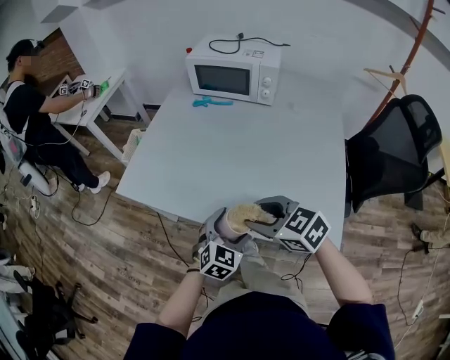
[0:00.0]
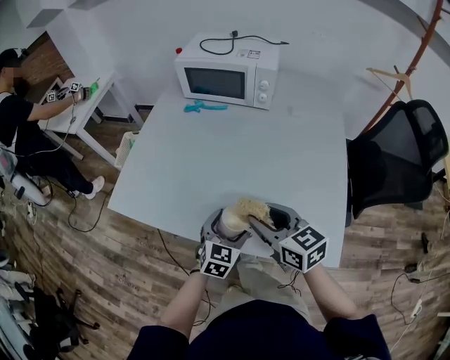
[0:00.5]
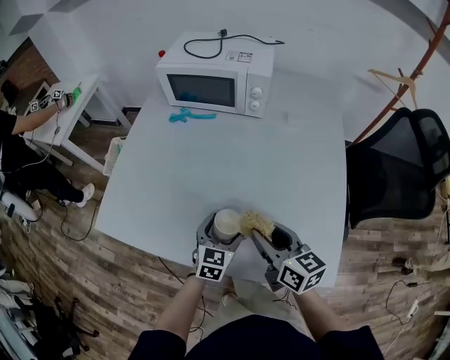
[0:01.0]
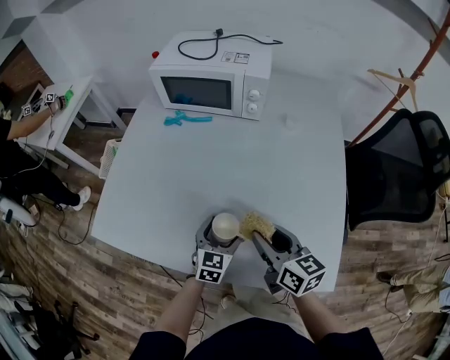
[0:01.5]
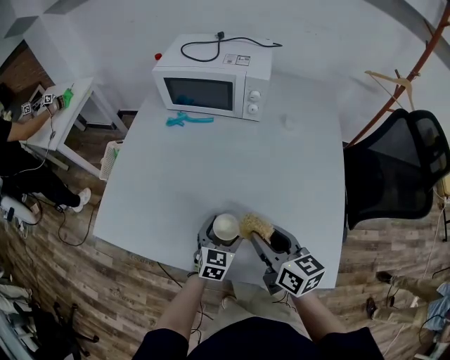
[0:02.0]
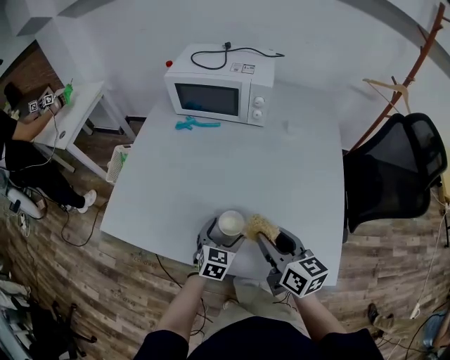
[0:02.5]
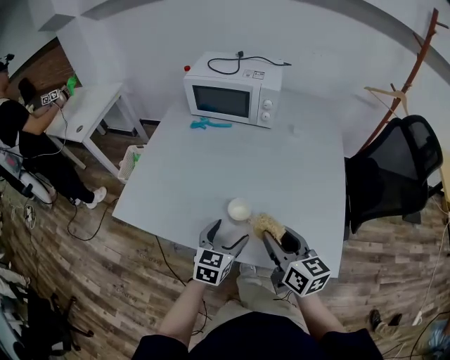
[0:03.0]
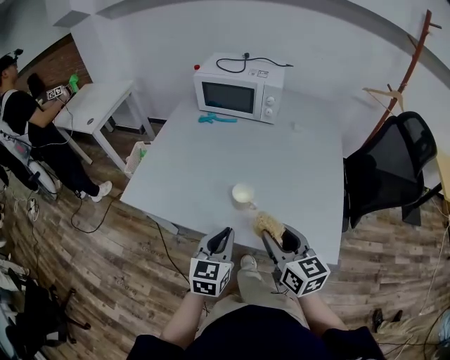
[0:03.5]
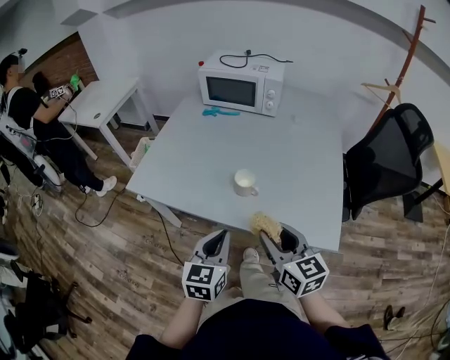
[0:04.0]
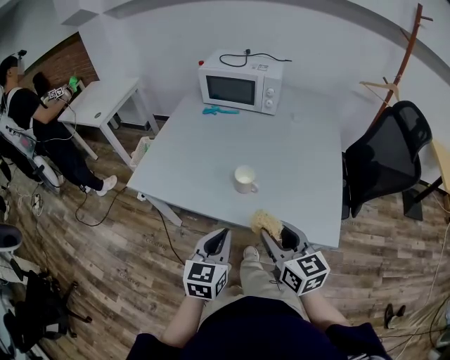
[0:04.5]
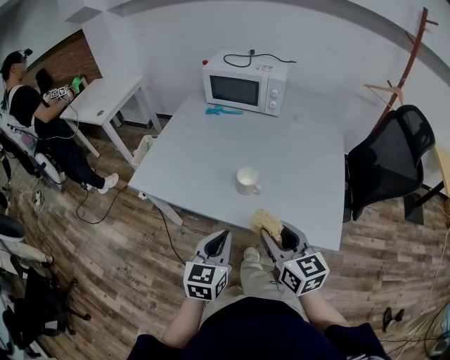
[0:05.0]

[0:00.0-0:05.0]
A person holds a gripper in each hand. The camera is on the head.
0:00.0 to 0:02.5: The left gripper moves forward and downward, roughly 15 cm. The right gripper is displaced forward and to the right by some 15 cm, and swivels about 50 degrees.
0:02.5 to 0:05.0: The right gripper moves backward, some 20 cm. Meanwhile the left gripper is displaced backward and upward by roughly 30 cm, turns by some 20 degrees, and closes.

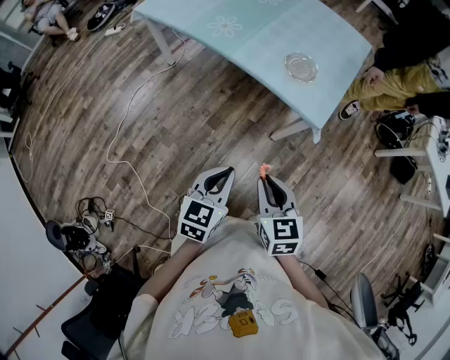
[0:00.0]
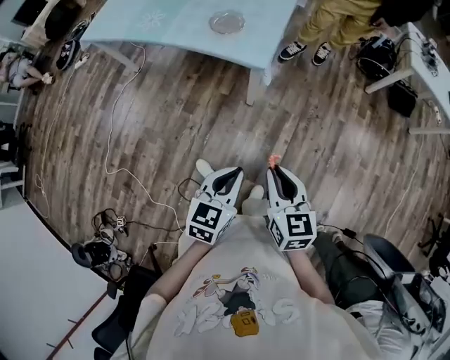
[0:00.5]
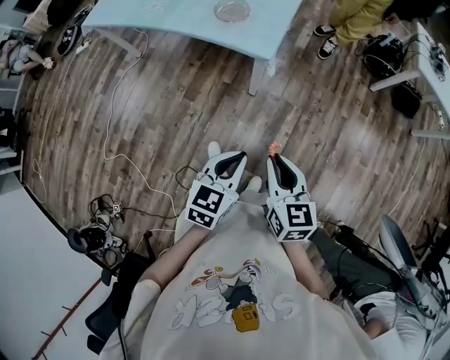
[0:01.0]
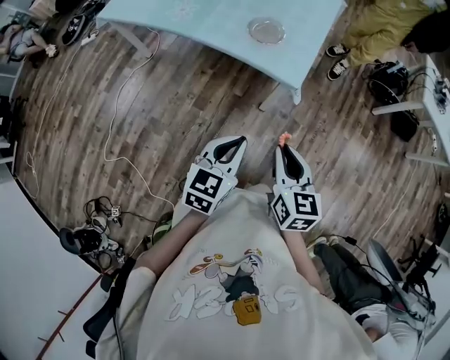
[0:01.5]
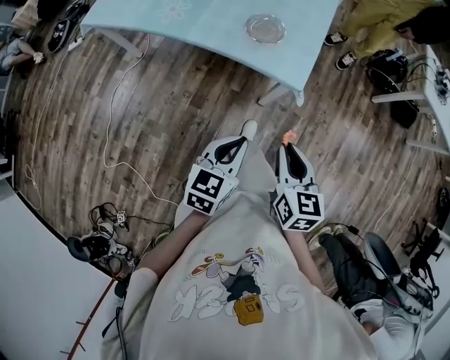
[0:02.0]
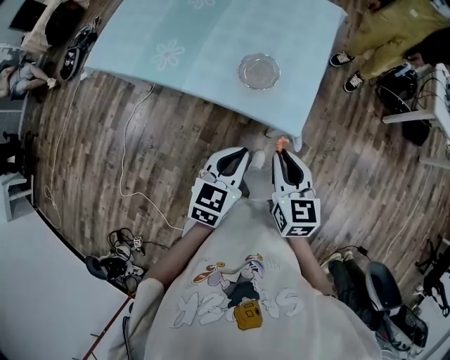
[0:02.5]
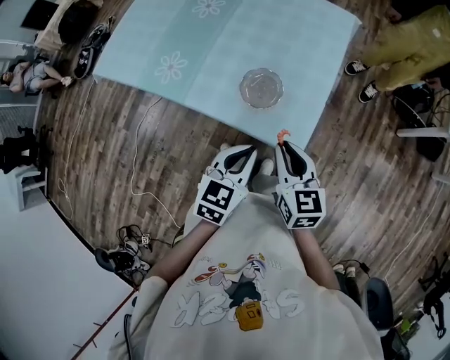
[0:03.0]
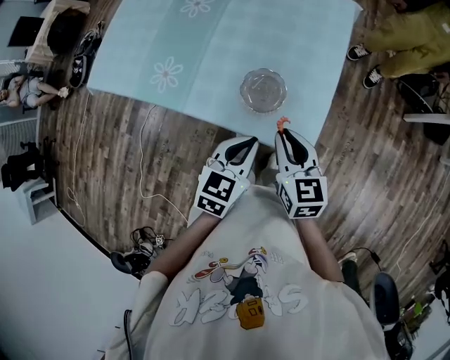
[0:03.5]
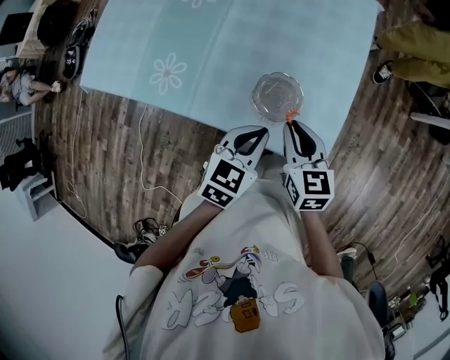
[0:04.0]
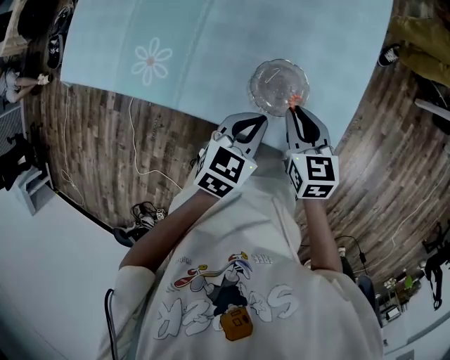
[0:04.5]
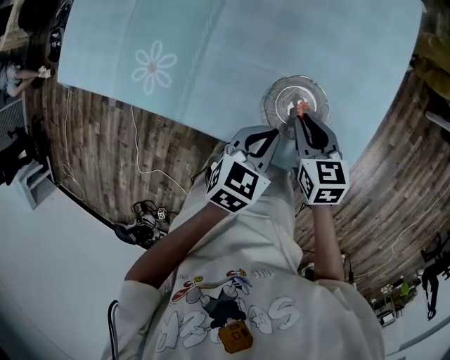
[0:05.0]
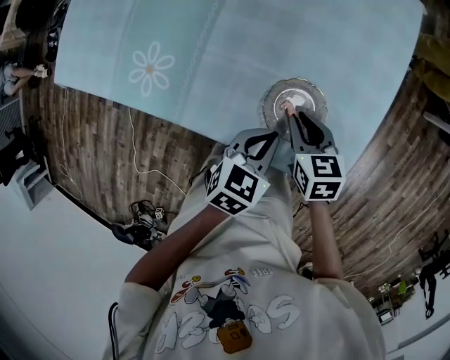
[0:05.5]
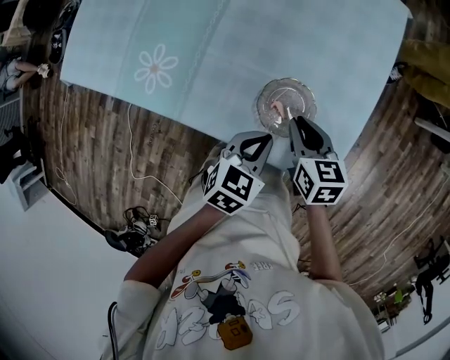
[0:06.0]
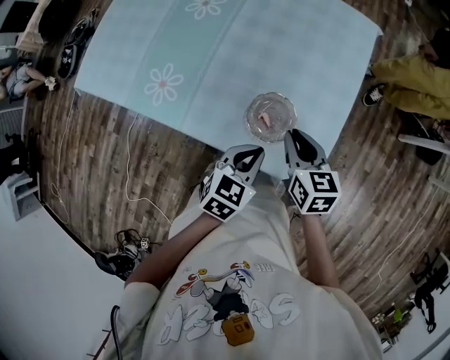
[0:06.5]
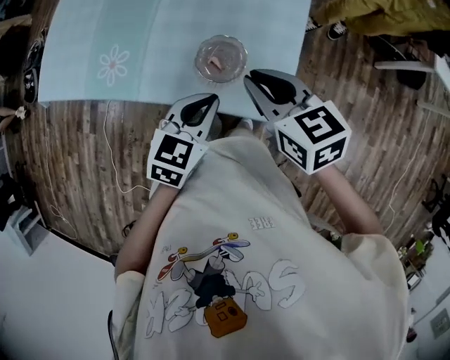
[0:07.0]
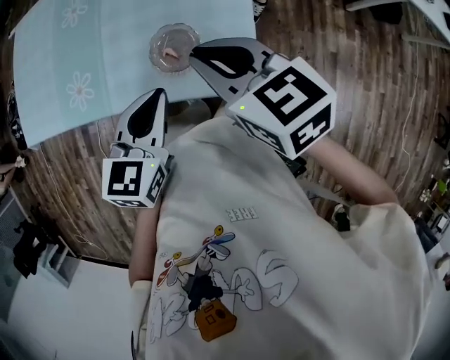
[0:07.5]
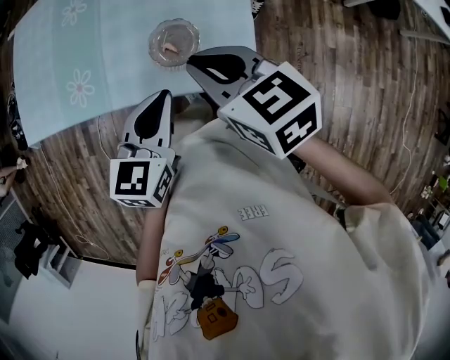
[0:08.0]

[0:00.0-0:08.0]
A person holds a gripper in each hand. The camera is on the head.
0:00.0 to 0:02.0: Both grippers travel together to the right and forward, about 15 cm. The right gripper rotates some 20 degrees.
0:02.0 to 0:04.0: The grippers both shift forward by some 40 cm.
0:04.0 to 0:06.0: The grippers both shift downward by roughly 10 cm.
0:06.0 to 0:08.0: Both grippers travel together upward and backward, roughly 20 cm.

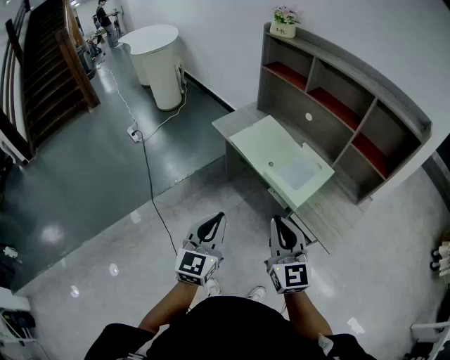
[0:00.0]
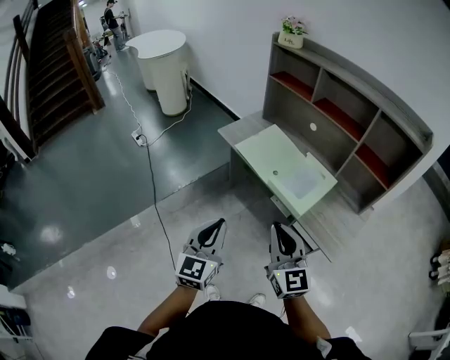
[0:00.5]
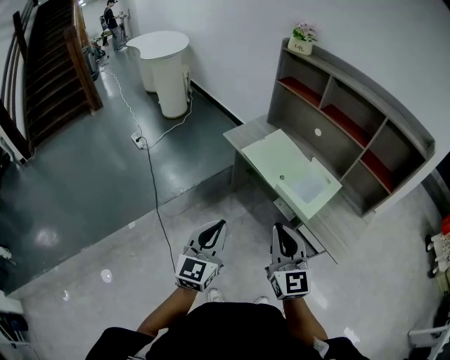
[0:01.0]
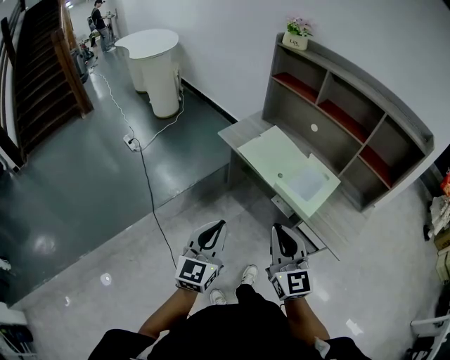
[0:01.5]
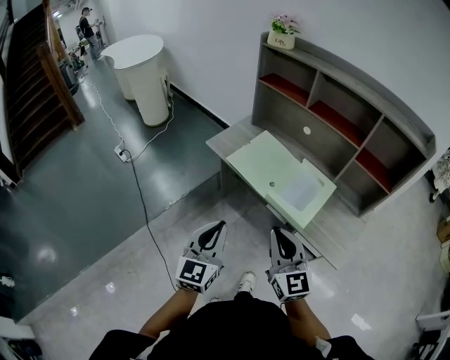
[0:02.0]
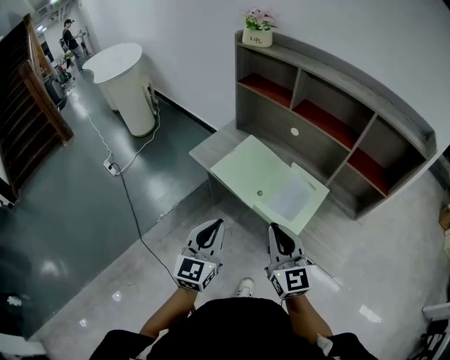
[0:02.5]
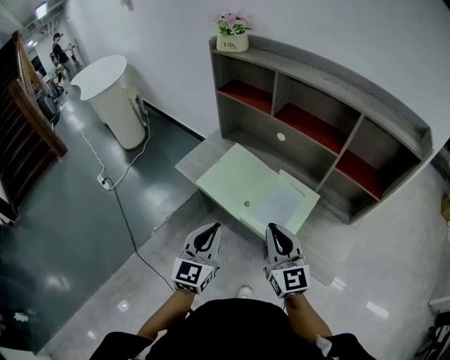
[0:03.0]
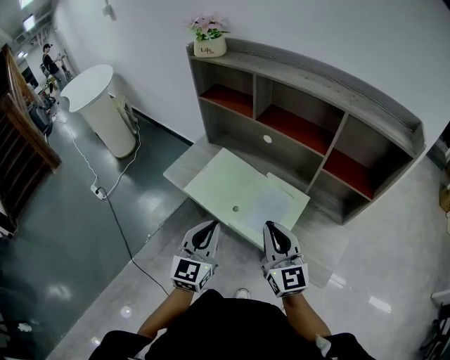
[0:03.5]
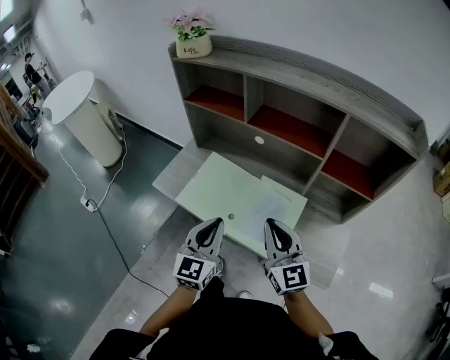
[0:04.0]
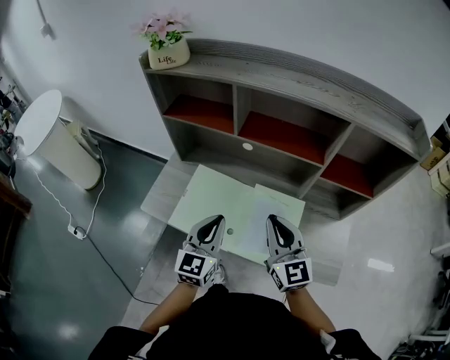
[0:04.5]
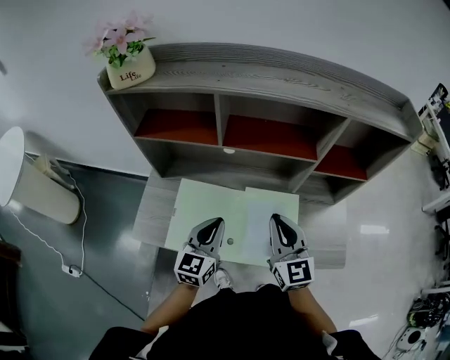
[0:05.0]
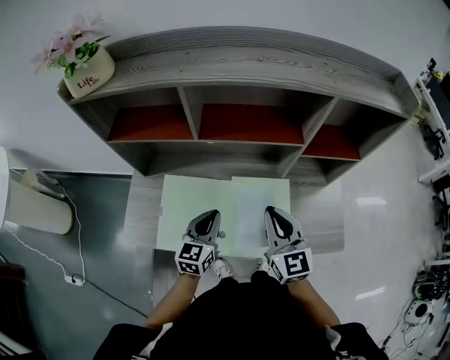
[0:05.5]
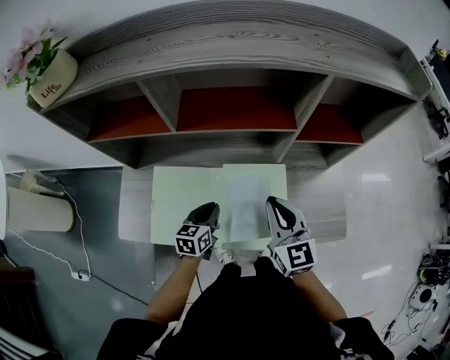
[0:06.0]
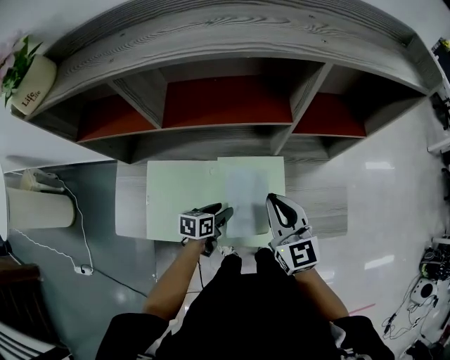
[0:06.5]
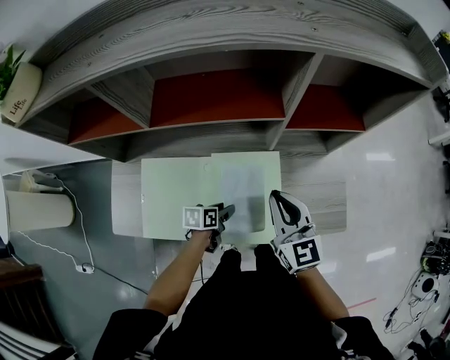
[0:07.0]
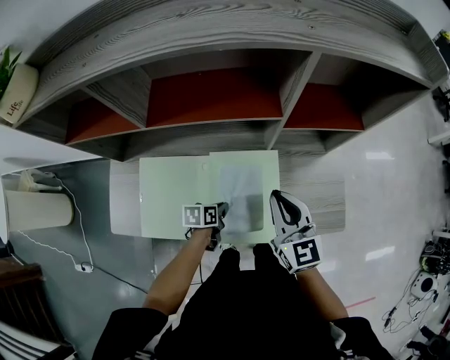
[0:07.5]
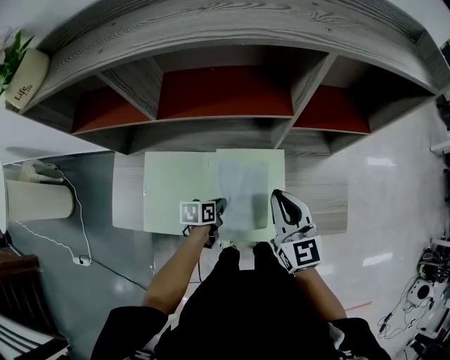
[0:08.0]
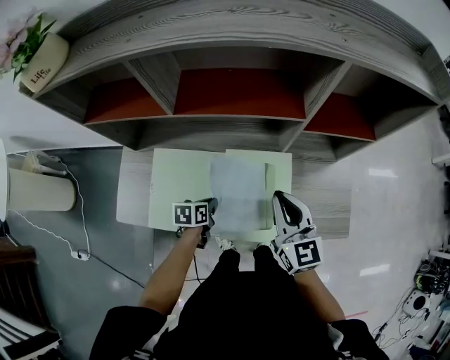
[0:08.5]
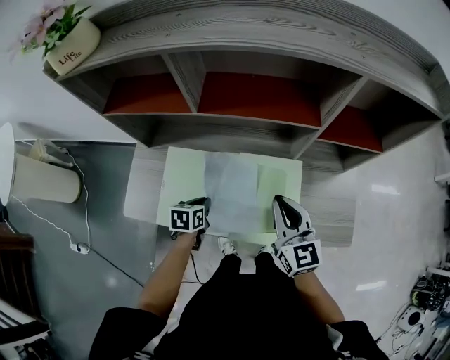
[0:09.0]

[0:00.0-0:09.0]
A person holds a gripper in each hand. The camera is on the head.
0:00.0 to 0:02.0: Both grippers move forward, some 10 cm.
0:02.0 to 0:04.5: Both grippers travel together forward and to the right, roughly 35 cm. The left gripper swivels roughly 30 degrees. Meanwhile the right gripper changes its angle by roughly 20 degrees.
0:04.5 to 0:07.0: The right gripper shifts by about 15 cm, and turns by roughly 20 degrees, while the left gripper shifts some 30 cm downward, tilts its fingers roughly 40 degrees downward, and opens its fingers.
0:07.0 to 0:09.0: The left gripper is displaced to the left and upward by some 15 cm, swivels some 20 degrees, and closes, while the right gripper shifts approximately 5 cm to the left.

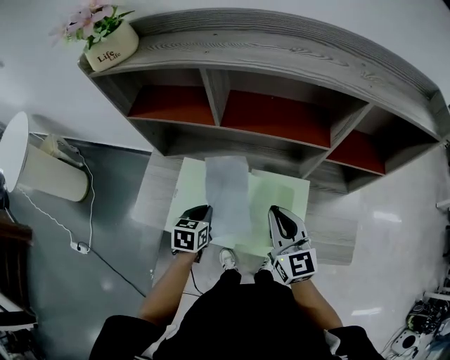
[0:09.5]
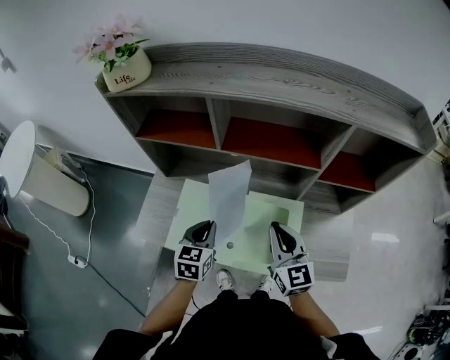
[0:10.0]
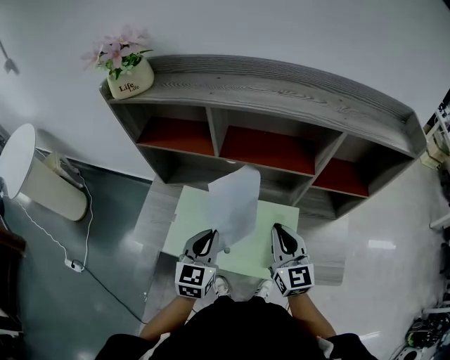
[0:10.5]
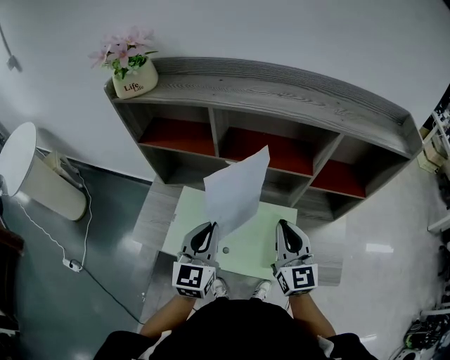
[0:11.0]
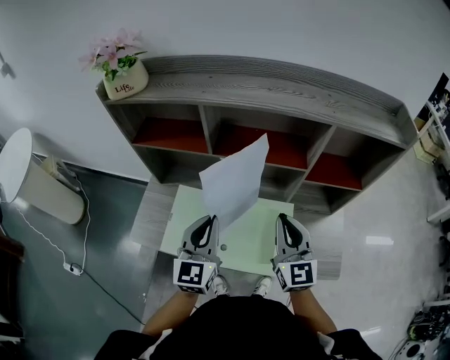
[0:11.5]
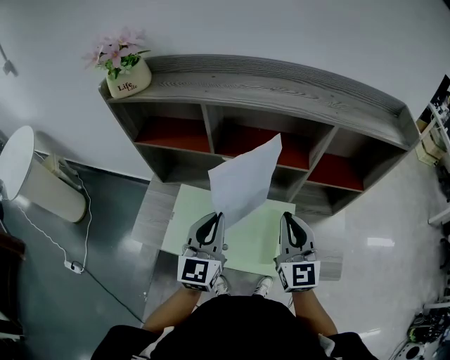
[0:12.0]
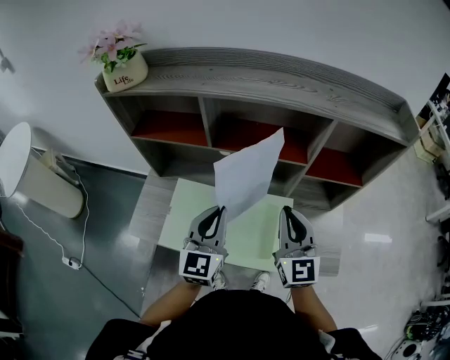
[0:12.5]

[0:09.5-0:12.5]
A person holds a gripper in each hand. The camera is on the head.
0:09.5 to 0:11.0: The left gripper heads upward, covering roughly 20 cm, and angles its fingers upward, by about 40 degrees, while the right gripper travels upward by roughly 5 cm.
0:11.0 to 0:12.5: The grippers move only a little.

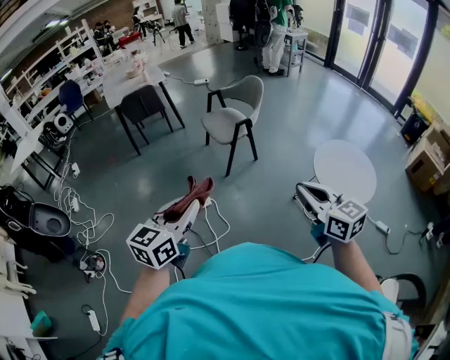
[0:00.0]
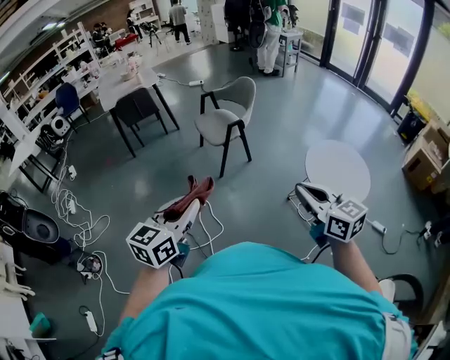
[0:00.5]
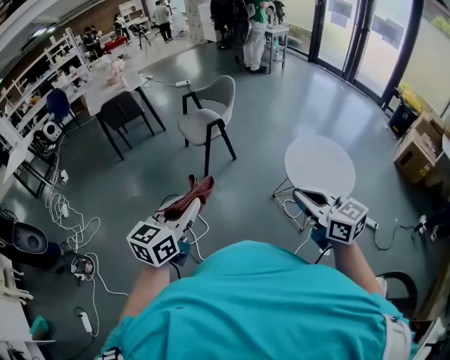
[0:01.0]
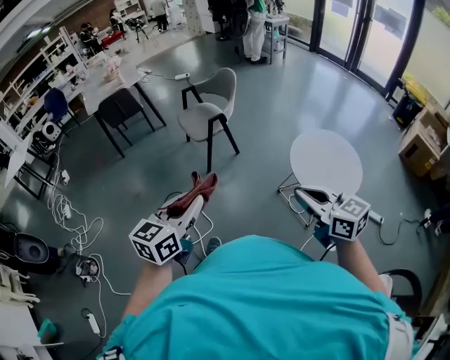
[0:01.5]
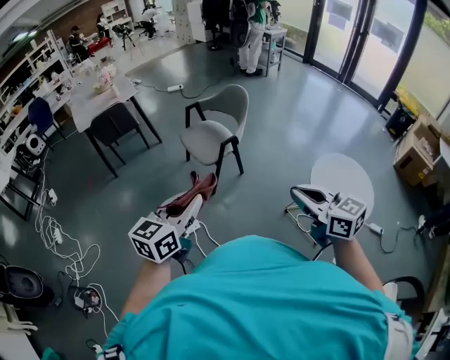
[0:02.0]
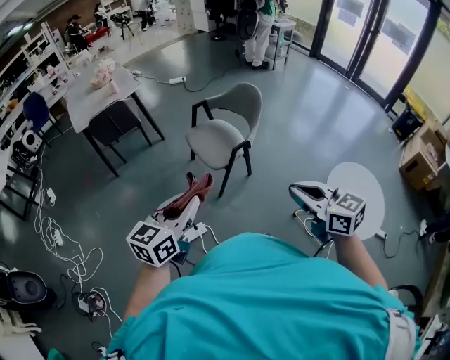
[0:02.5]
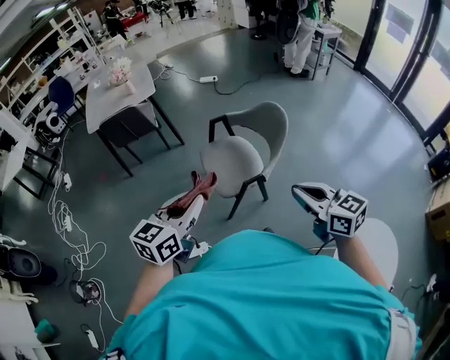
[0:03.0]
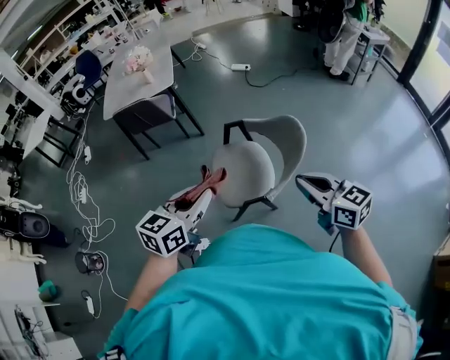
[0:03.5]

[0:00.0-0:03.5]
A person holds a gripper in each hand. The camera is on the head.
0:00.0 to 0:02.0: Both grippers move forward, roughly 20 cm.
0:02.0 to 0:03.5: The pair of grippers is taken forward, about 60 cm. The right gripper changes its angle by about 30 degrees. The left gripper changes its angle by about 30 degrees.
